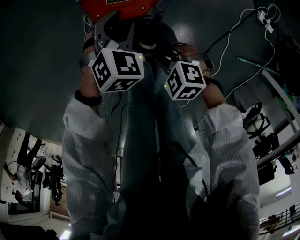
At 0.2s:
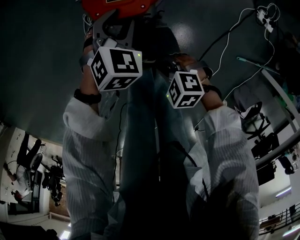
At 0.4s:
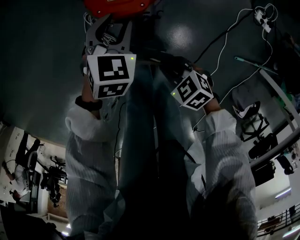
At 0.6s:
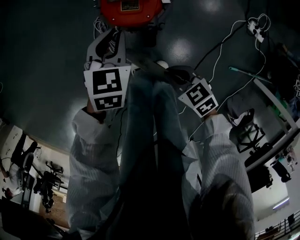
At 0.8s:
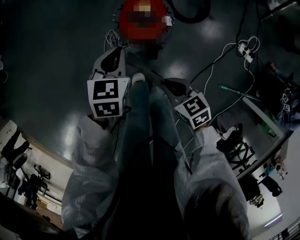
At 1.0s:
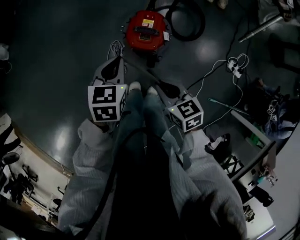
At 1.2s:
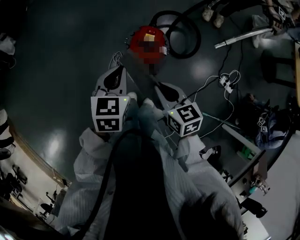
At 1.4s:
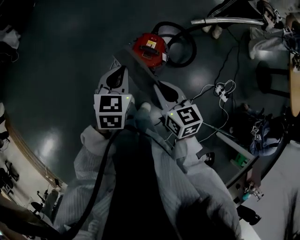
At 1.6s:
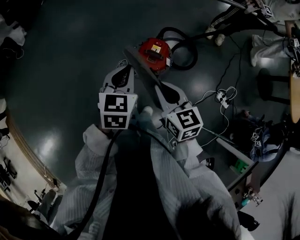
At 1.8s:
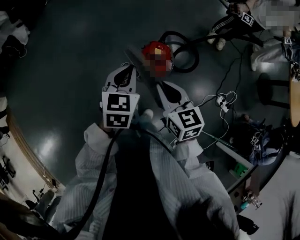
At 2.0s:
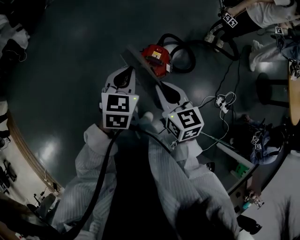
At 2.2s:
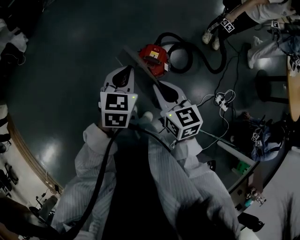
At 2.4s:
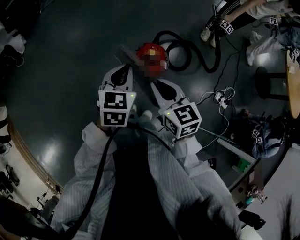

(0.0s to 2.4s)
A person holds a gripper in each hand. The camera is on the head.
0.0s - 1.2s: The grippers both shift upward by some 40 cm. The left gripper twists about 40 degrees counterclockwise, seen from behind, and closes; the right gripper swivels roughly 50 degrees.
1.2s - 2.4s: The right gripper shifts some 10 cm upward, while the left gripper is displaced upward and to the right by approximately 10 cm.

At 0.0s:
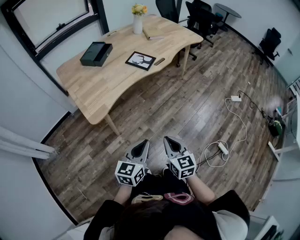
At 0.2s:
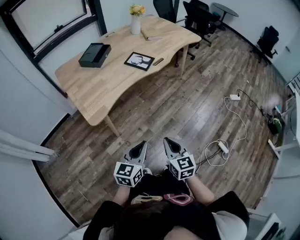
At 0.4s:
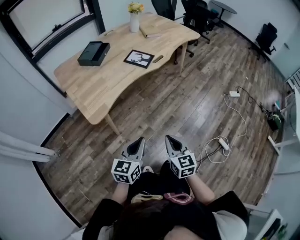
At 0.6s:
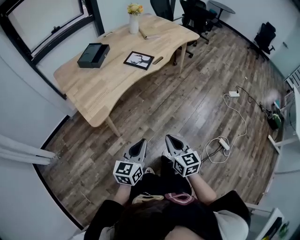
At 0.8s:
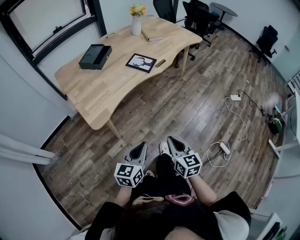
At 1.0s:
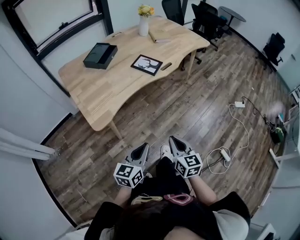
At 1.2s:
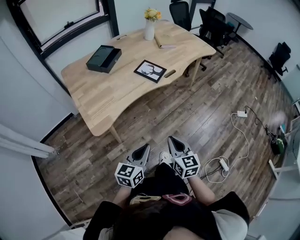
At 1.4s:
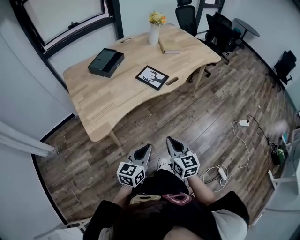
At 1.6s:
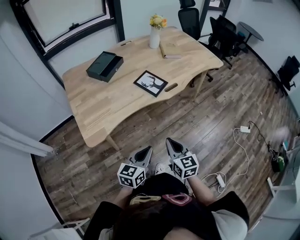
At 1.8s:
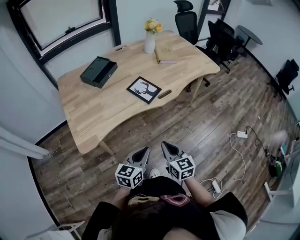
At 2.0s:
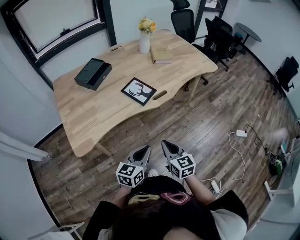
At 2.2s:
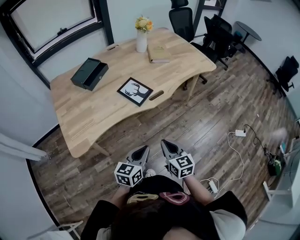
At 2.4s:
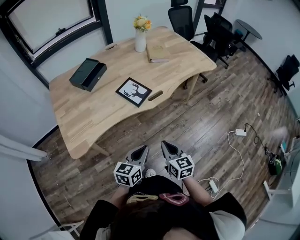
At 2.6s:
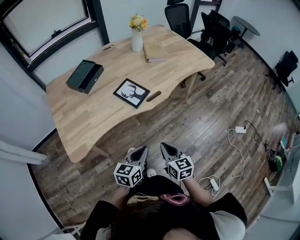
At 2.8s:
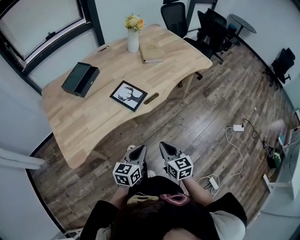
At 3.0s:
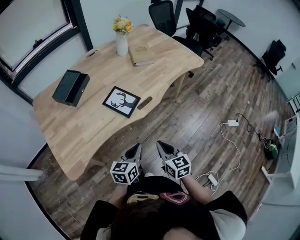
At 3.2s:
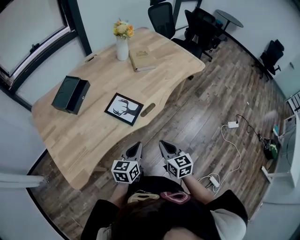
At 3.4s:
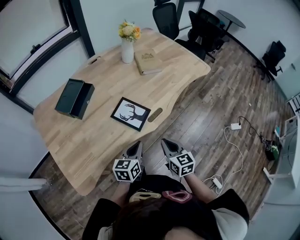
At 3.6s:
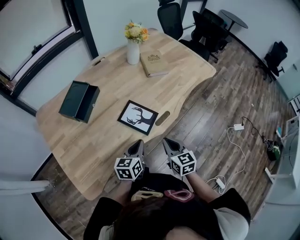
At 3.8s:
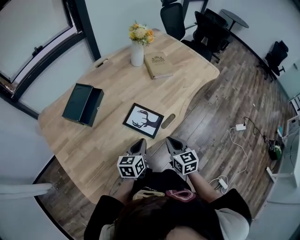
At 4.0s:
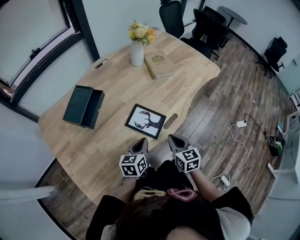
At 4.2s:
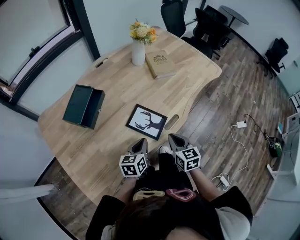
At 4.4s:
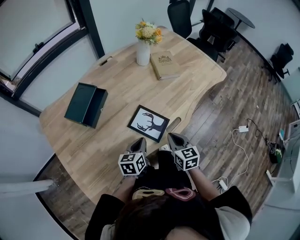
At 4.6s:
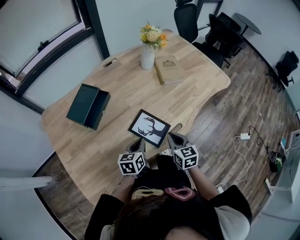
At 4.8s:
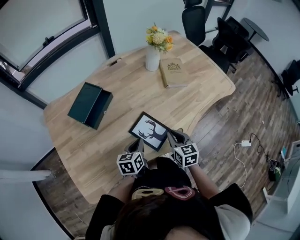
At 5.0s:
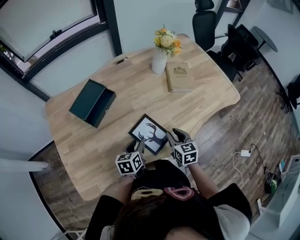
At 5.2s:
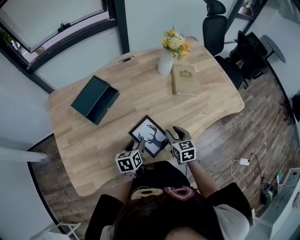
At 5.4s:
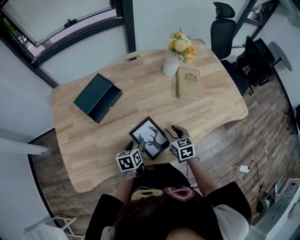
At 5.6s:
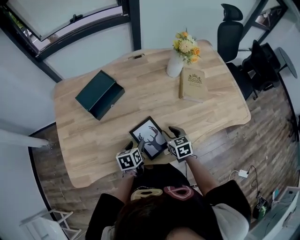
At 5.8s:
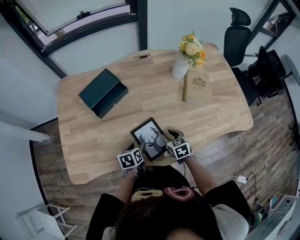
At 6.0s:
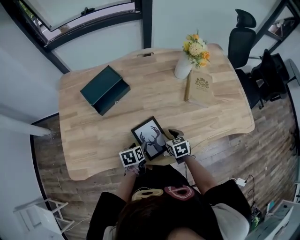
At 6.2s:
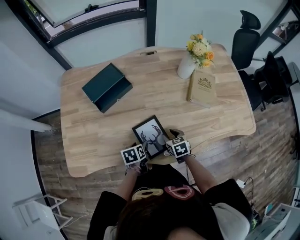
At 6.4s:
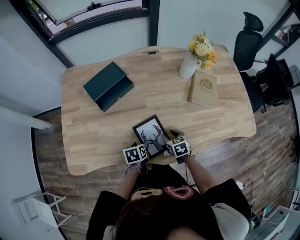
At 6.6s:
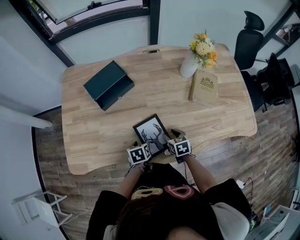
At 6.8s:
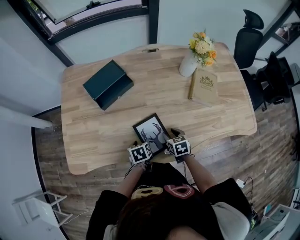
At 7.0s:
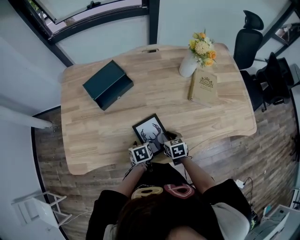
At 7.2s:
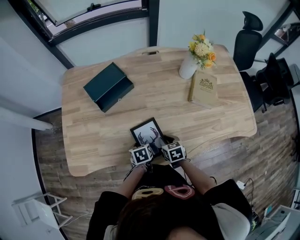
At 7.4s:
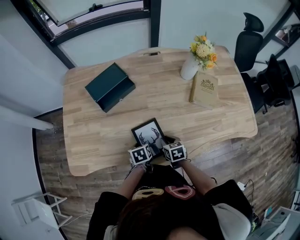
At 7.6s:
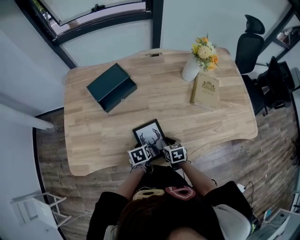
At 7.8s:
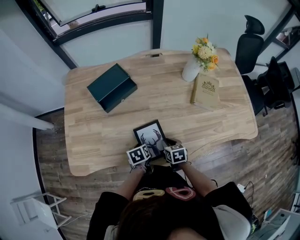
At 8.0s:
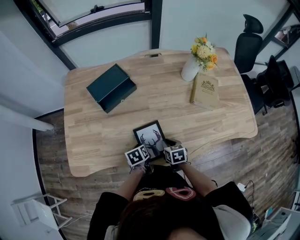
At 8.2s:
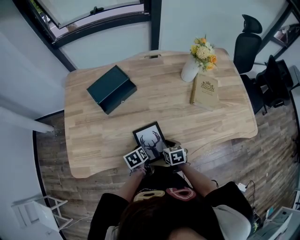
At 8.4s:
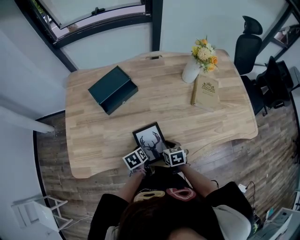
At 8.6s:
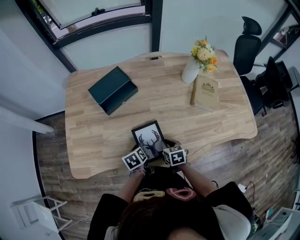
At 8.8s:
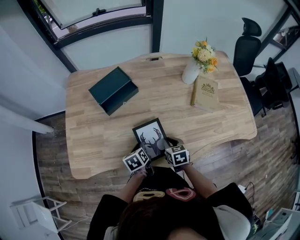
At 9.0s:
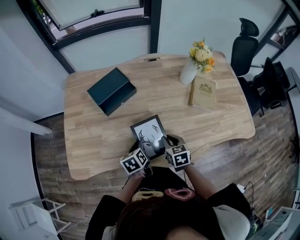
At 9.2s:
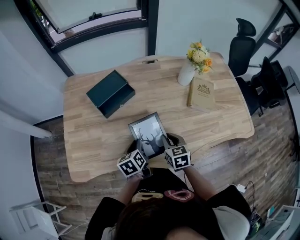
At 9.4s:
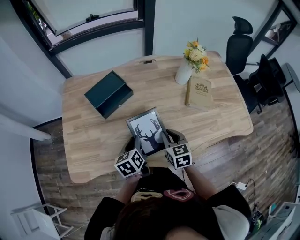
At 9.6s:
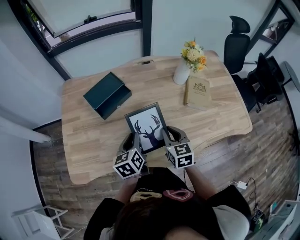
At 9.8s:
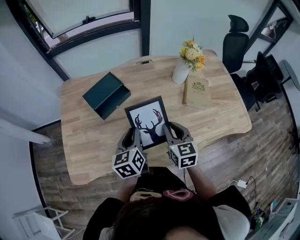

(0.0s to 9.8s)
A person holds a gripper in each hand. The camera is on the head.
0.0s - 1.4s: The grippers both shift forward by approximately 15 cm.
1.4s - 2.8s: The two grippers go some 20 cm forward and to the right.
2.8s - 4.2s: The two grippers go about 25 cm forward and to the left.
4.2s - 5.6s: The left gripper changes place by some 10 cm, turns by approximately 40 degrees, and opens its fingers, while the right gripper moves about 20 cm, rotates about 30 degrees, and opens.
5.6s - 7.0s: The right gripper shifts about 5 cm downward. Meanwhile the left gripper moves some 5 cm.
7.0s - 8.4s: The left gripper closes its fingers.
8.4s - 9.8s: Both grippers move upward, some 20 cm. The left gripper points its fingers about 30 degrees further upward. The right gripper rotates about 30 degrees.

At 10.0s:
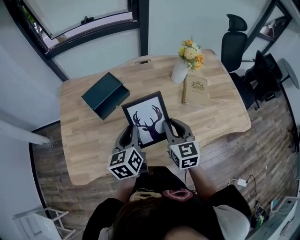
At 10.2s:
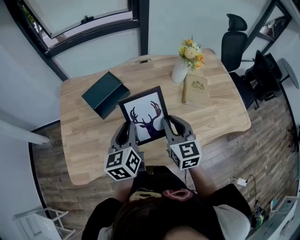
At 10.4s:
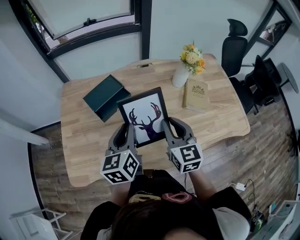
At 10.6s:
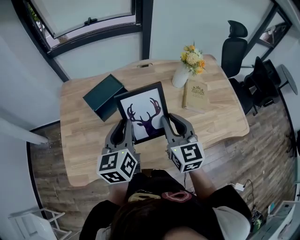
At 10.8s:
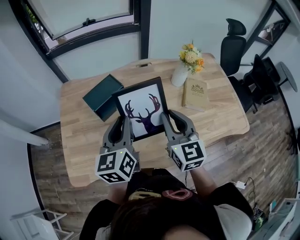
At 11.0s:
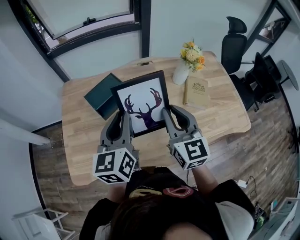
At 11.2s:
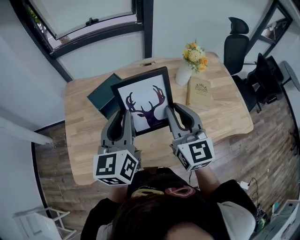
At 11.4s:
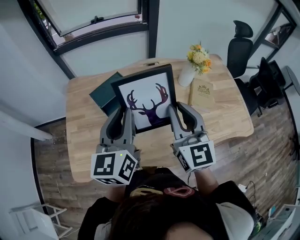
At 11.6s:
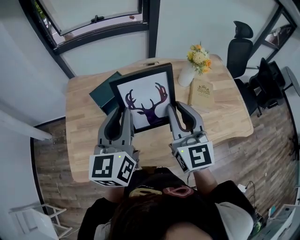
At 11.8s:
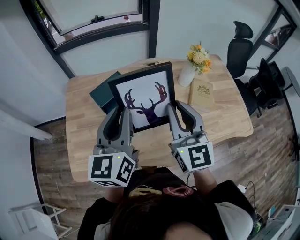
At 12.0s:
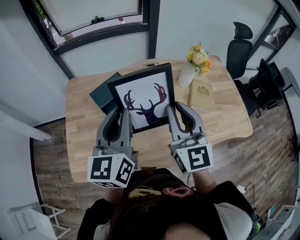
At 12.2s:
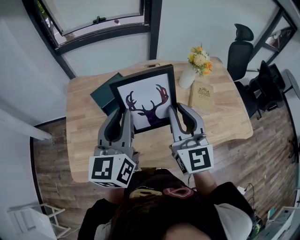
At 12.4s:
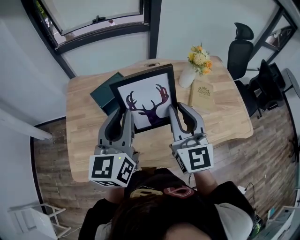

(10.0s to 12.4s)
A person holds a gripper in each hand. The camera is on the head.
10.0s - 11.2s: The two grippers go roughly 15 cm upward. The left gripper changes its angle by roughly 20 degrees.
11.2s - 12.4s: There are only small adjustments of the grippers.

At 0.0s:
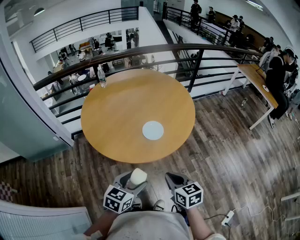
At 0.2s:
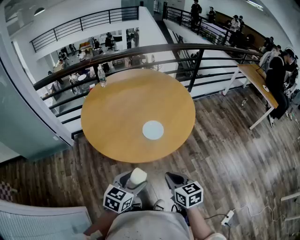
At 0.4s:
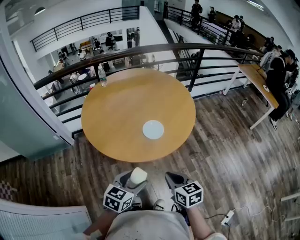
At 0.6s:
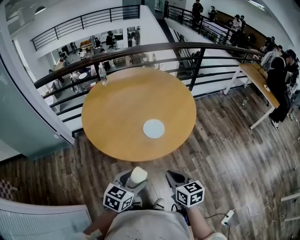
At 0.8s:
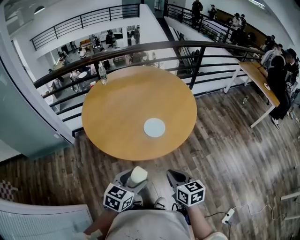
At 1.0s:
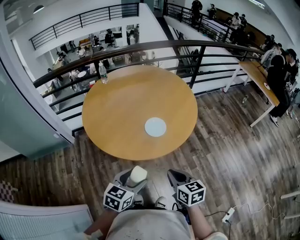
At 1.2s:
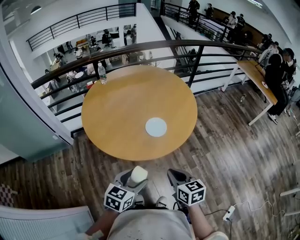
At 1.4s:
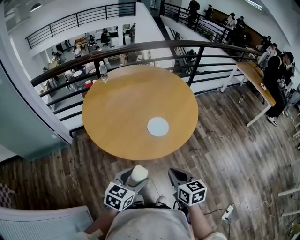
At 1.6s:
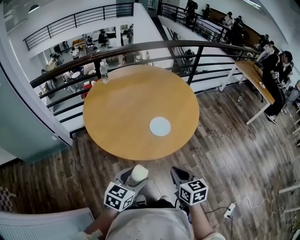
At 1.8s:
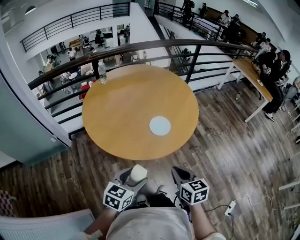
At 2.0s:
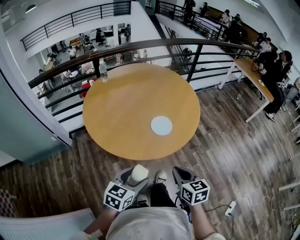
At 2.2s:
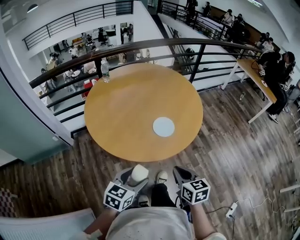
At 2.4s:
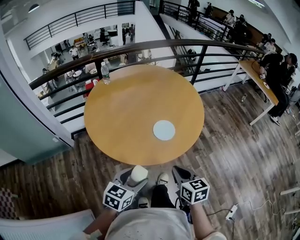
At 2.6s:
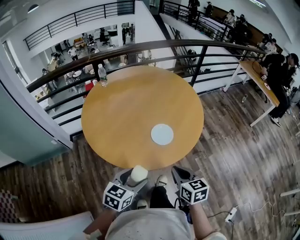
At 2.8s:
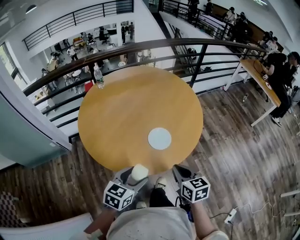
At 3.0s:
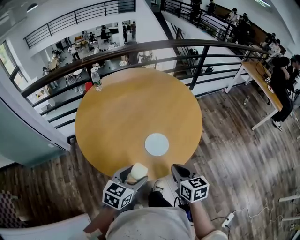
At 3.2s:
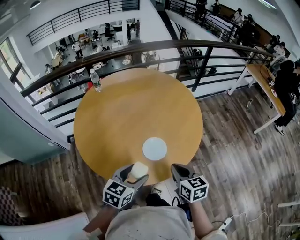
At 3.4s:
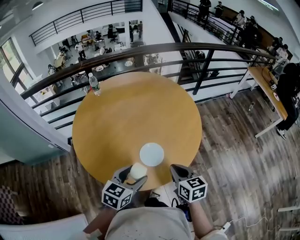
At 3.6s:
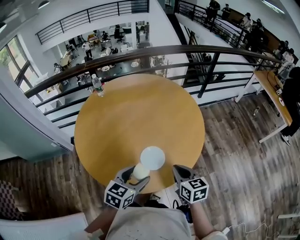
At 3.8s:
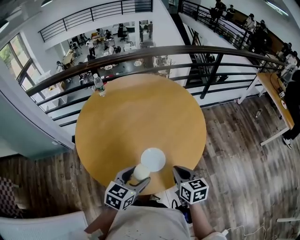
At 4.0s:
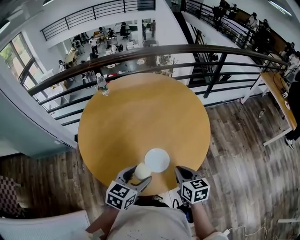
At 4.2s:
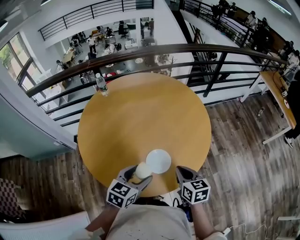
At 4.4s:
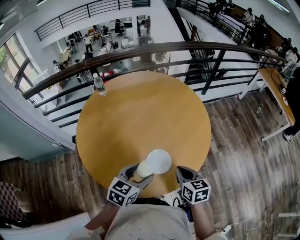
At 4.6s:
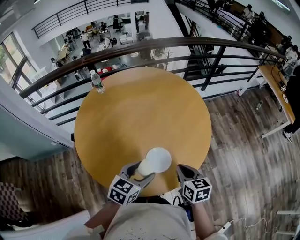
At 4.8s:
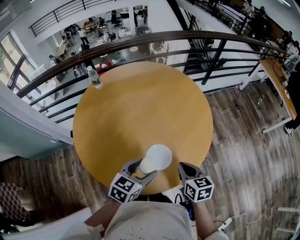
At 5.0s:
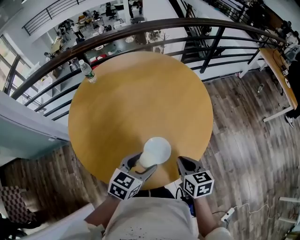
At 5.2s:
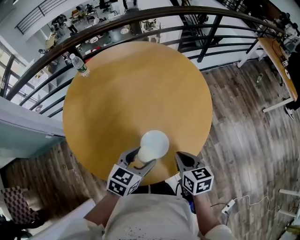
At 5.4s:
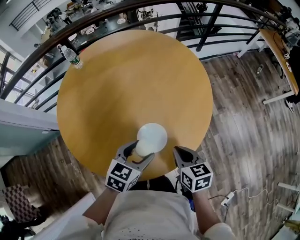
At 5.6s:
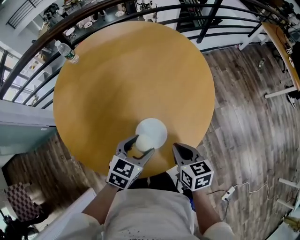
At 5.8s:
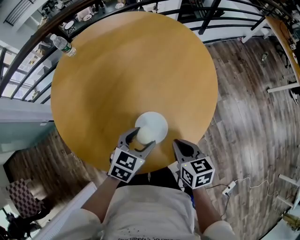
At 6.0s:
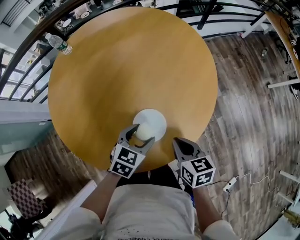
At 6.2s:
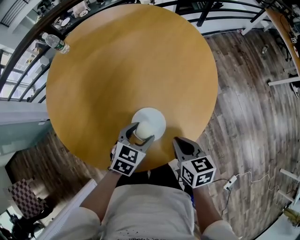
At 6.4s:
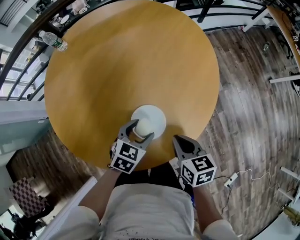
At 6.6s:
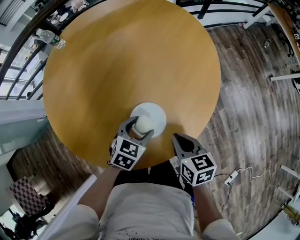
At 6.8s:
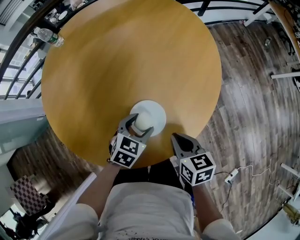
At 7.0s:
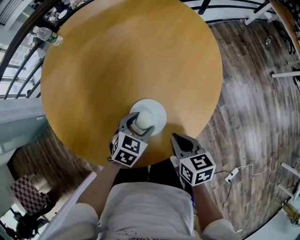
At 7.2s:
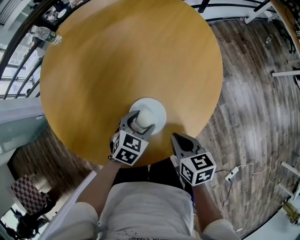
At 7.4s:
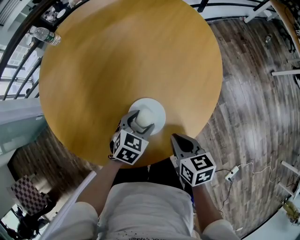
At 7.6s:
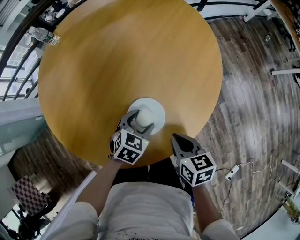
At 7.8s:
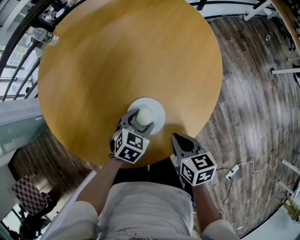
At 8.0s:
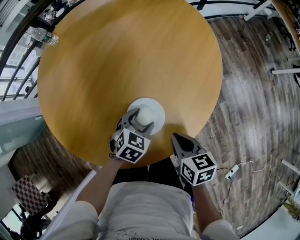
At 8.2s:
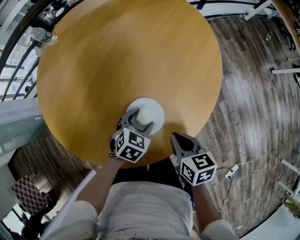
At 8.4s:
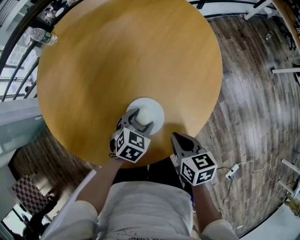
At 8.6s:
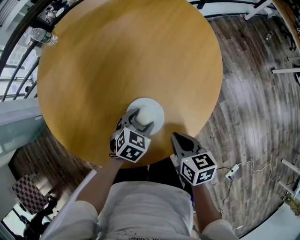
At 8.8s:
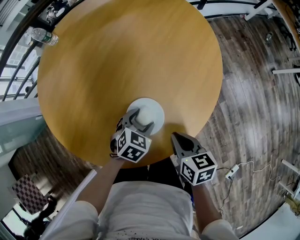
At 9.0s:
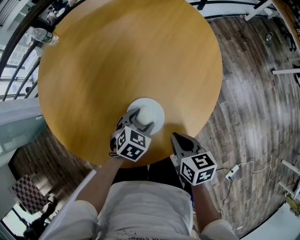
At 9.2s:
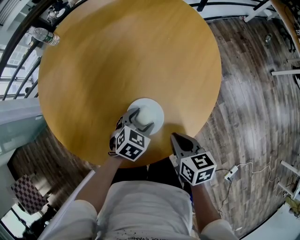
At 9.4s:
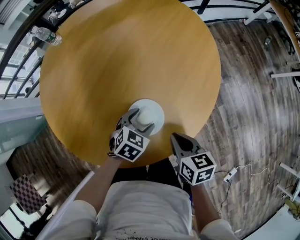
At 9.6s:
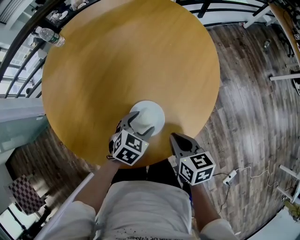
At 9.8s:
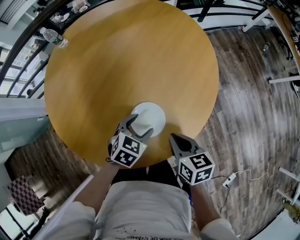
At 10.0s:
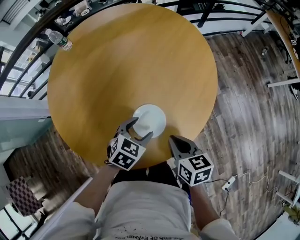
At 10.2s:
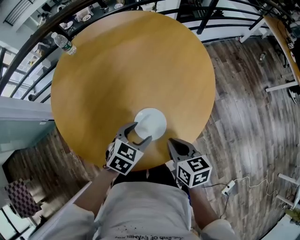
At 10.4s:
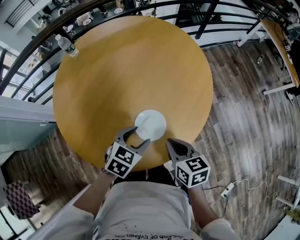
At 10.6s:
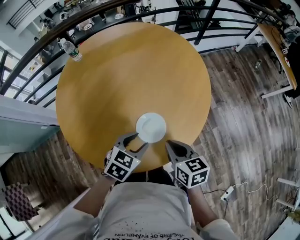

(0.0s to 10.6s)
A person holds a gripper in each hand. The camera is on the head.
0.0s - 1.6s: The left gripper shifts approximately 5 cm to the left, while the right gripper moves some 5 cm.
1.6s - 3.0s: Both grippers travel together forward, some 15 cm.
3.0s - 4.6s: The two grippers go some 15 cm forward.
4.6s - 6.0s: The right gripper is displaced downward by about 10 cm, while the left gripper heads downward and forward, covering approximately 15 cm.
6.0s - 7.6s: The left gripper goes approximately 10 cm downward.
7.6s - 9.0s: The grippers stay close to where they were, moving slightly.
9.0s - 10.6s: The left gripper goes about 15 cm upward and backward; the right gripper heads upward, covering approximately 10 cm.
